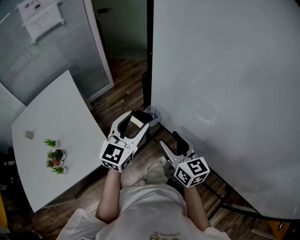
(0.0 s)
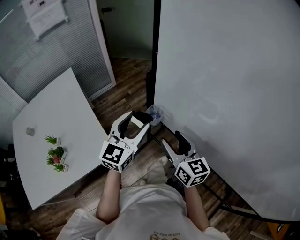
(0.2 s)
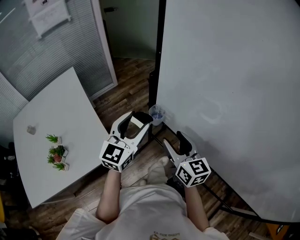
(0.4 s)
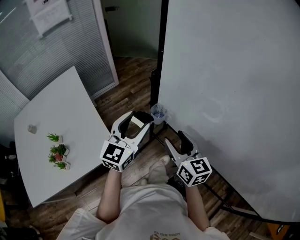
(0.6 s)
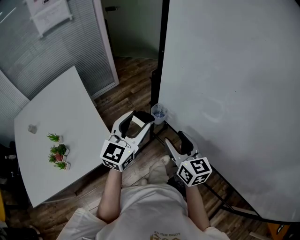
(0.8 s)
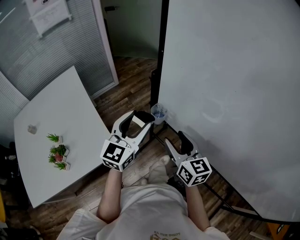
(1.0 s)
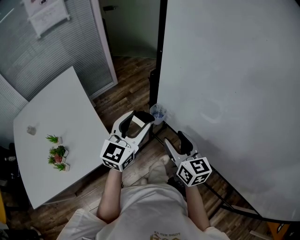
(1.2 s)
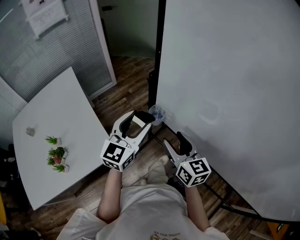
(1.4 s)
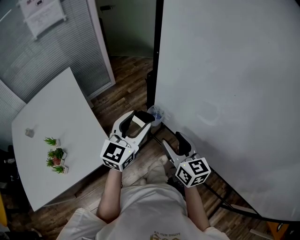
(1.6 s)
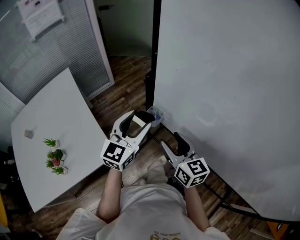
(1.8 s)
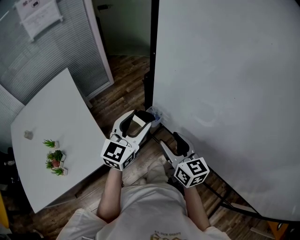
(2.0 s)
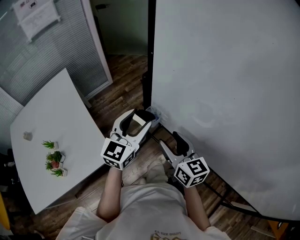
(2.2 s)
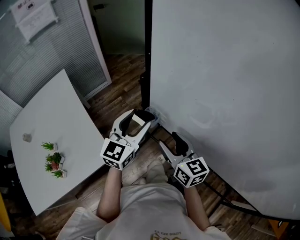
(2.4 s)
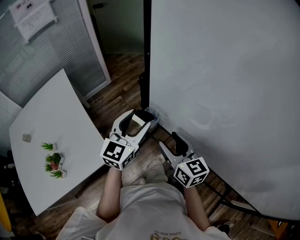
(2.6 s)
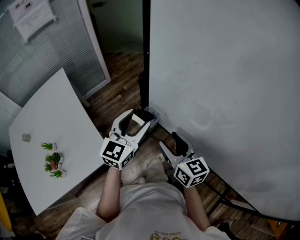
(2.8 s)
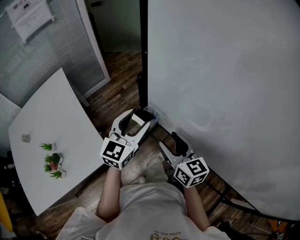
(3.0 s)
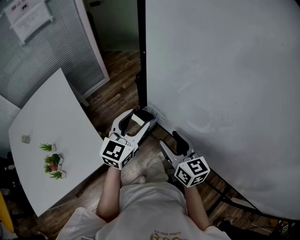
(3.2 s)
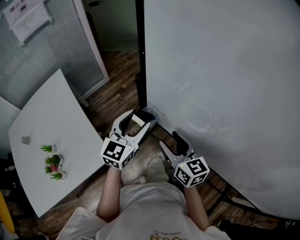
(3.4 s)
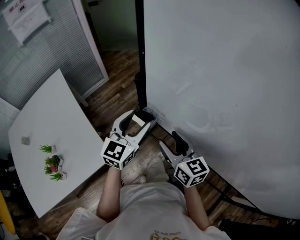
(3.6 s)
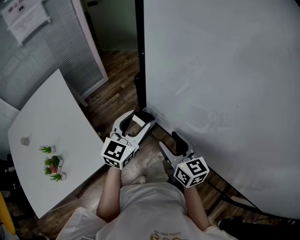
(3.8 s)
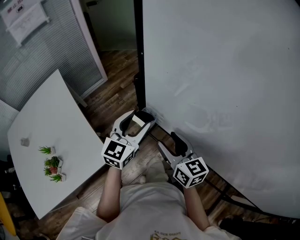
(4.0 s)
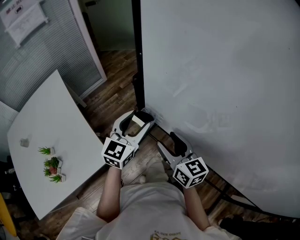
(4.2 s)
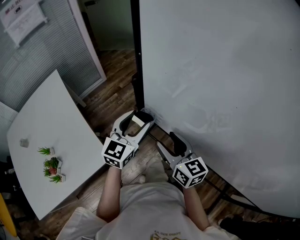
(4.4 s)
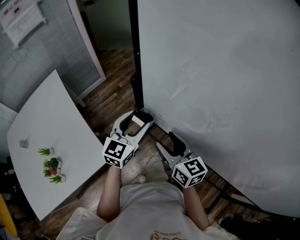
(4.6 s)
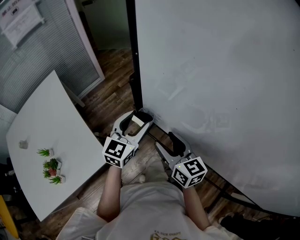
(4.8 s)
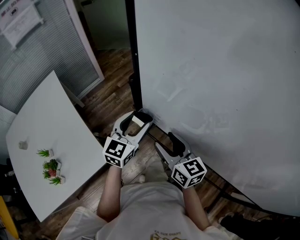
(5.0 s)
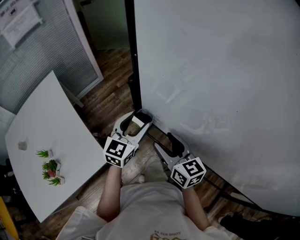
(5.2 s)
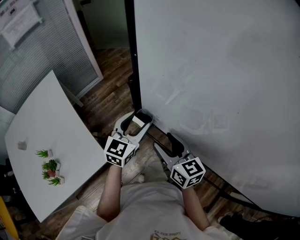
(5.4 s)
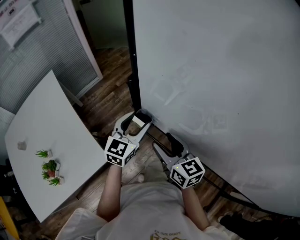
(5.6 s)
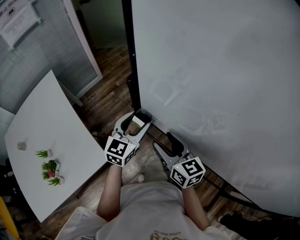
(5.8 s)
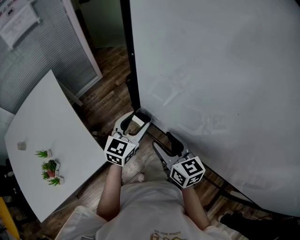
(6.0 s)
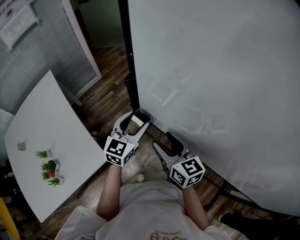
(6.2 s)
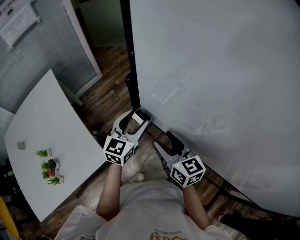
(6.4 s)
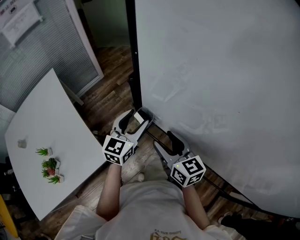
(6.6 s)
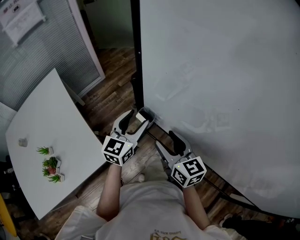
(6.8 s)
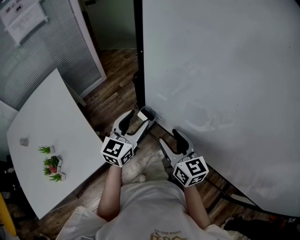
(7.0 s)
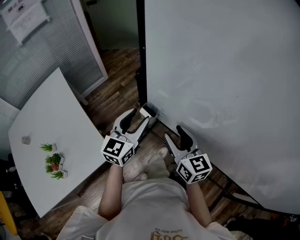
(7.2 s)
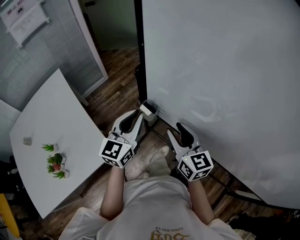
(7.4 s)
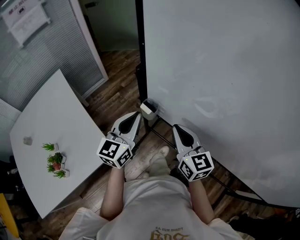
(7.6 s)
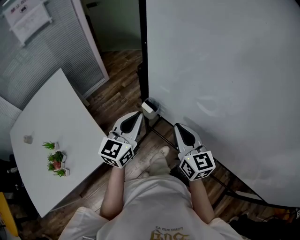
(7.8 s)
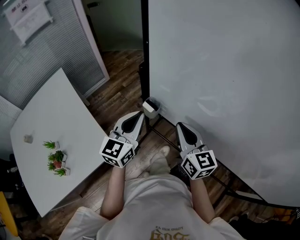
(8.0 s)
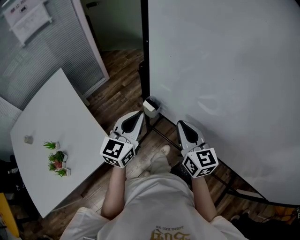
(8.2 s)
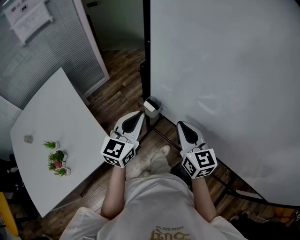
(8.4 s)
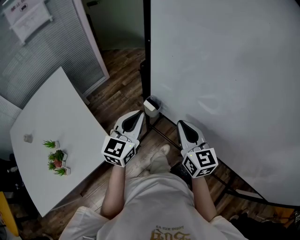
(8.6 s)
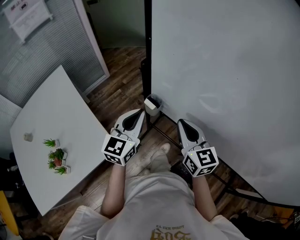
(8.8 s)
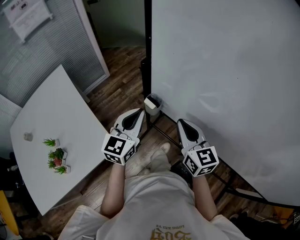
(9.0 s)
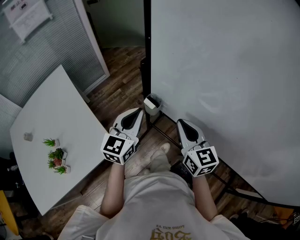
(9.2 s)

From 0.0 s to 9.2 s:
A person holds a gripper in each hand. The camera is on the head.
From 0.0 s to 3.0 s: The grippers move only a little.
From 3.0 s to 4.6 s: There are only small adjustments of the grippers.
From 4.6 s to 6.2 s: The grippers stay close to where they were, moving slightly.
From 6.2 s to 7.6 s: The left gripper shifts approximately 10 cm upward and backward, and closes. Meanwhile the right gripper changes place by some 5 cm, and closes.
From 7.6 s to 9.2 s: The grippers stay close to where they were, moving slightly.

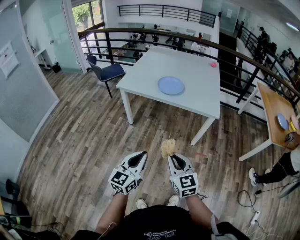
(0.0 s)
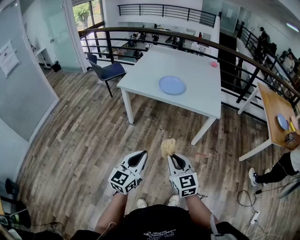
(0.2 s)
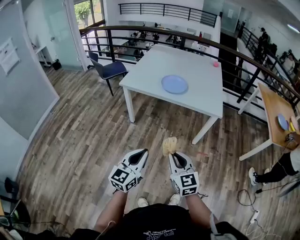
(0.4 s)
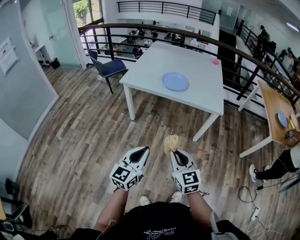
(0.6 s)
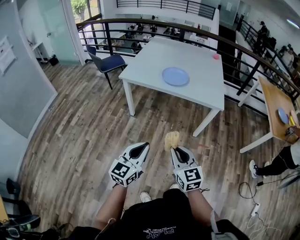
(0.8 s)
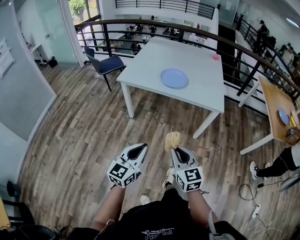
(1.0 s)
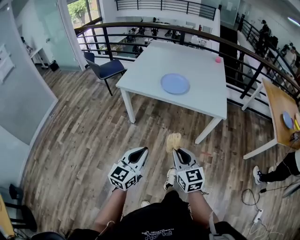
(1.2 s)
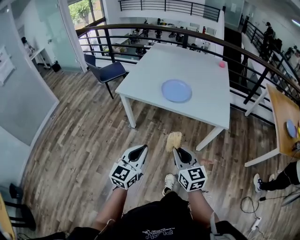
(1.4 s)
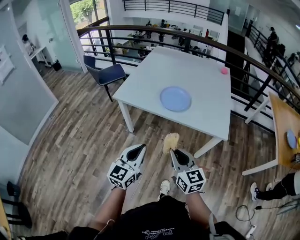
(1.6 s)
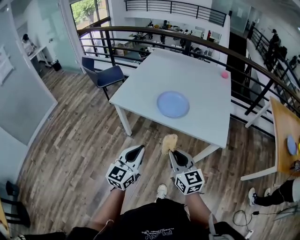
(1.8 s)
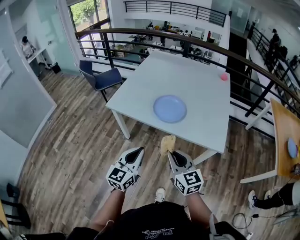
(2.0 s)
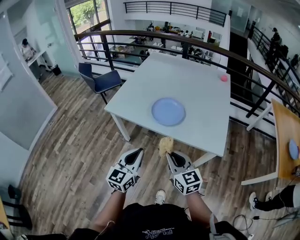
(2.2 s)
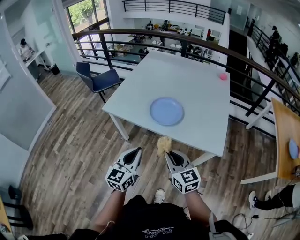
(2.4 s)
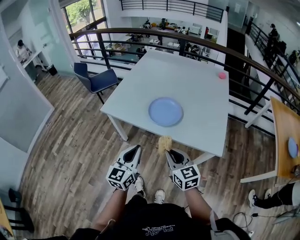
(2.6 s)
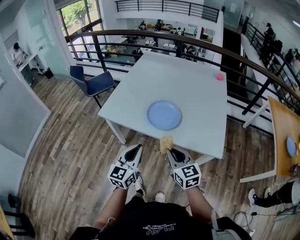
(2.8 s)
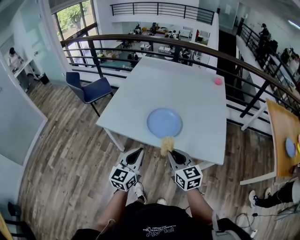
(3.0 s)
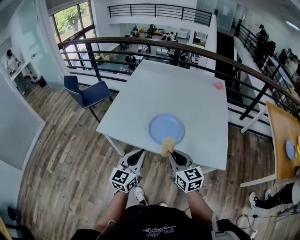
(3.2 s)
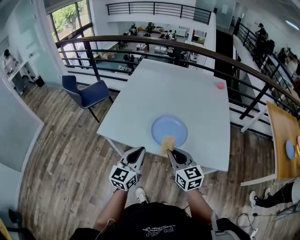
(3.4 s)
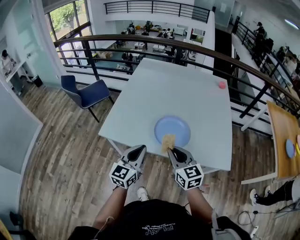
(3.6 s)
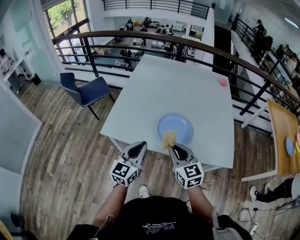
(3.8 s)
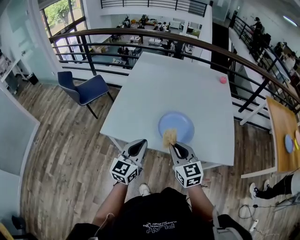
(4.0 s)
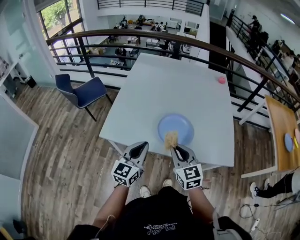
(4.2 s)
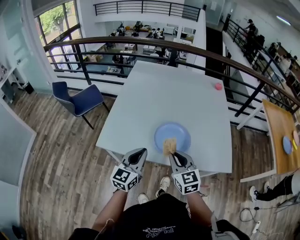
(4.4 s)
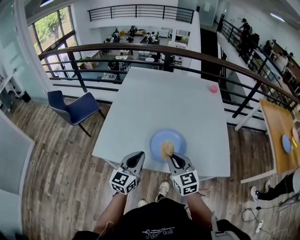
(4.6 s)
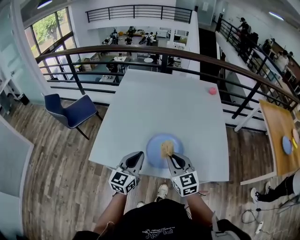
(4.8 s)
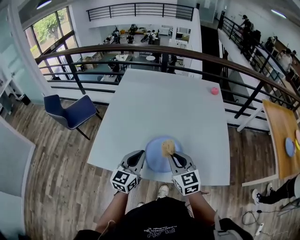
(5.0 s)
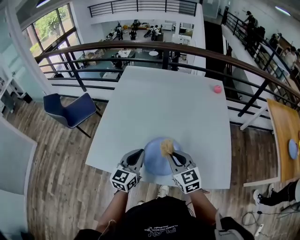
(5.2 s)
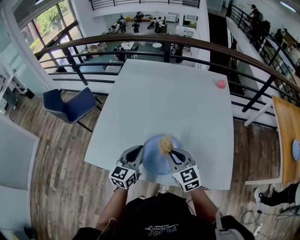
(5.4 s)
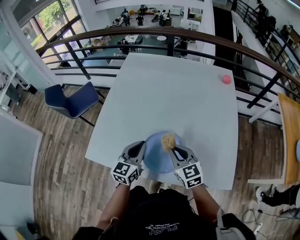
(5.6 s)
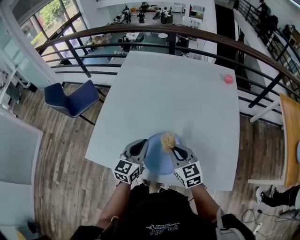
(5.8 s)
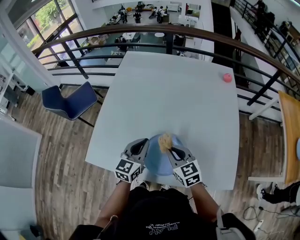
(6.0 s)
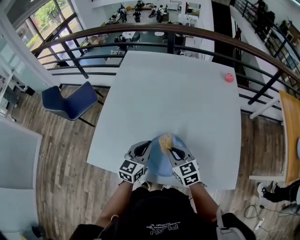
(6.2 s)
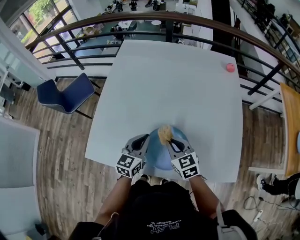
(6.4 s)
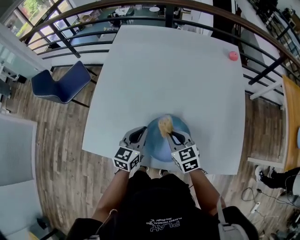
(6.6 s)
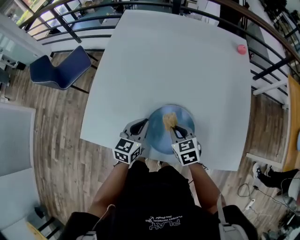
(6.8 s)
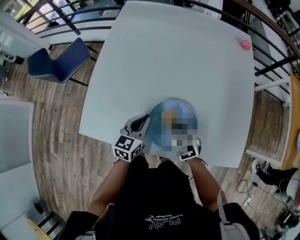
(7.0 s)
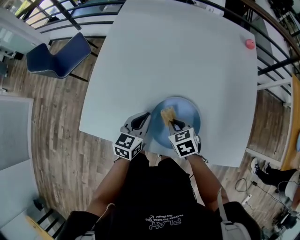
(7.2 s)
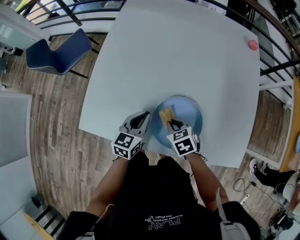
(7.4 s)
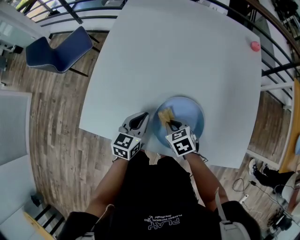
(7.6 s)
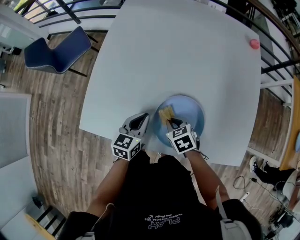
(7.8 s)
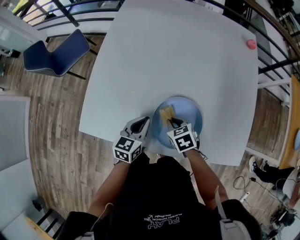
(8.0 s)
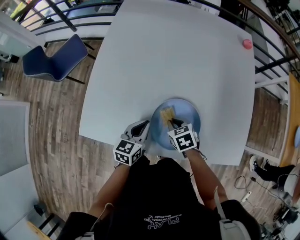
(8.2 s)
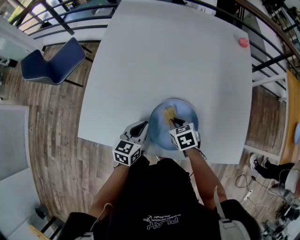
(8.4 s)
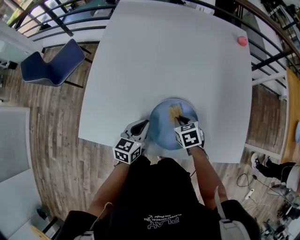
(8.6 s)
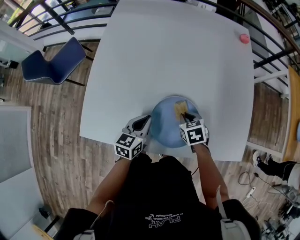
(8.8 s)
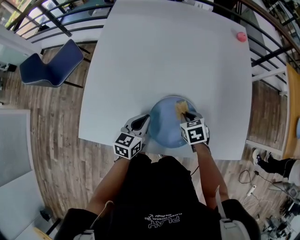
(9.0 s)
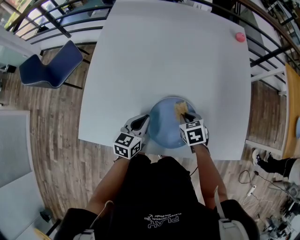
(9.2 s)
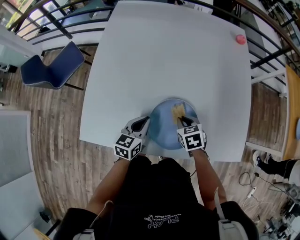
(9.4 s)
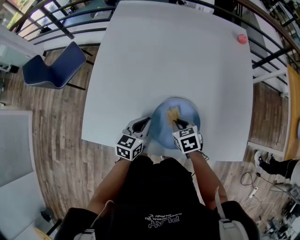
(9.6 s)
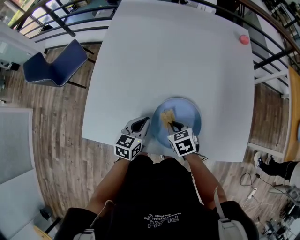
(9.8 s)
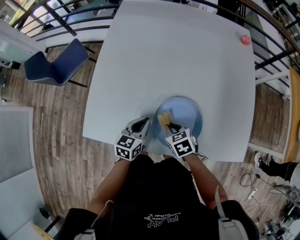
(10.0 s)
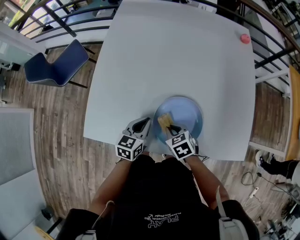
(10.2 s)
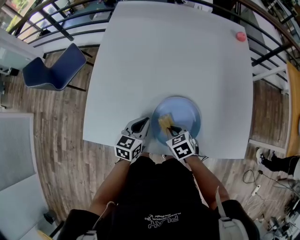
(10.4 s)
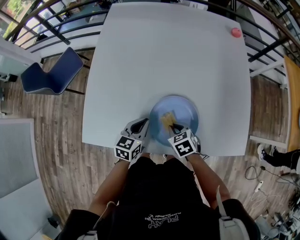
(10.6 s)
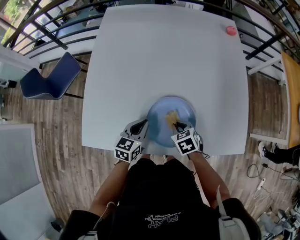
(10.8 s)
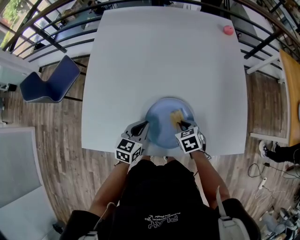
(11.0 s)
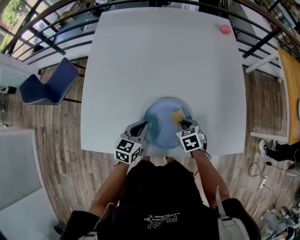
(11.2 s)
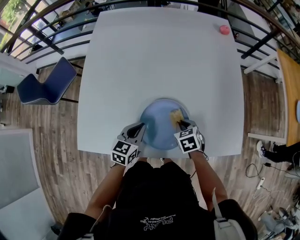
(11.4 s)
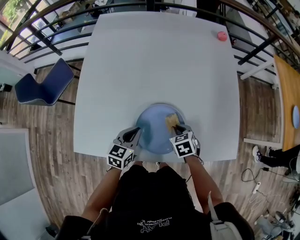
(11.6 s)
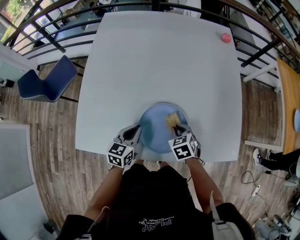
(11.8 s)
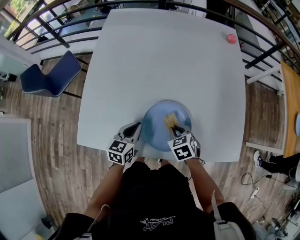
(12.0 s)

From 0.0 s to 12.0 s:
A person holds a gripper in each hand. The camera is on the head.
From 0.0 s to 1.6 s: The grippers both shift forward by some 25 cm.
From 1.6 s to 3.0 s: Both grippers move forward, approximately 20 cm.
From 3.0 s to 4.4 s: Both grippers travel together forward and to the left, some 15 cm.
From 4.4 s to 6.0 s: The left gripper heads forward and to the right, covering roughly 25 cm. The right gripper heads forward, covering roughly 20 cm.
From 6.0 s to 7.6 s: The two grippers go approximately 15 cm downward and to the left. The right gripper angles its fingers downward, by about 30 degrees.
From 7.6 s to 9.0 s: The right gripper goes approximately 10 cm to the right.
From 9.0 s to 10.4 s: The right gripper moves to the left and backward, some 10 cm.
From 10.4 s to 12.0 s: The right gripper shifts roughly 5 cm to the right.

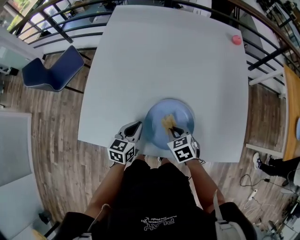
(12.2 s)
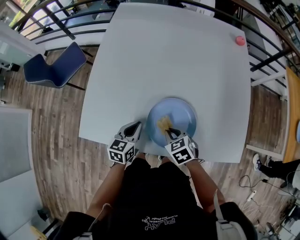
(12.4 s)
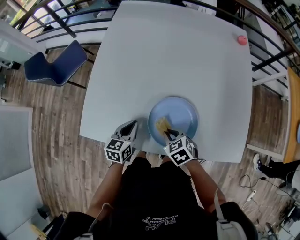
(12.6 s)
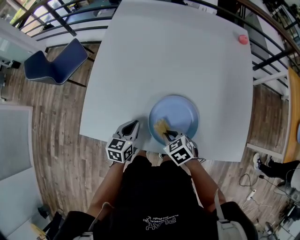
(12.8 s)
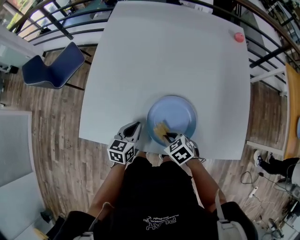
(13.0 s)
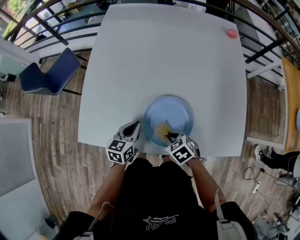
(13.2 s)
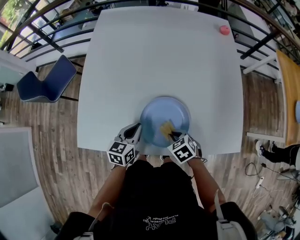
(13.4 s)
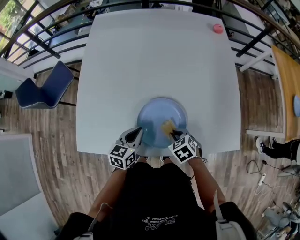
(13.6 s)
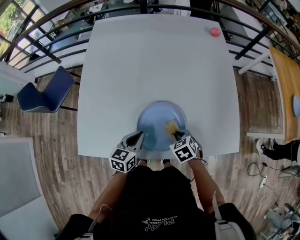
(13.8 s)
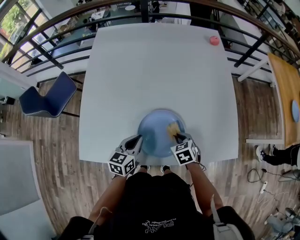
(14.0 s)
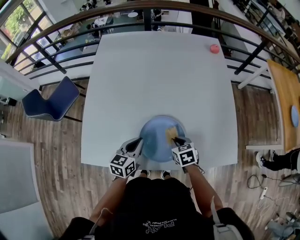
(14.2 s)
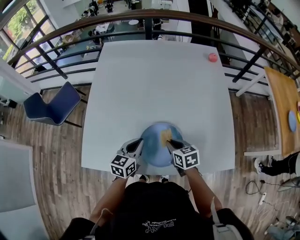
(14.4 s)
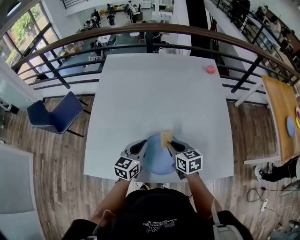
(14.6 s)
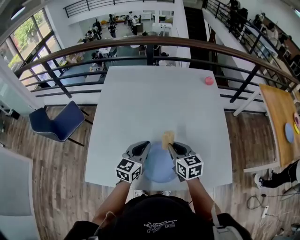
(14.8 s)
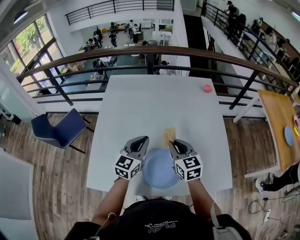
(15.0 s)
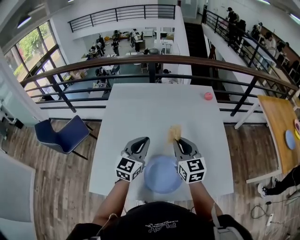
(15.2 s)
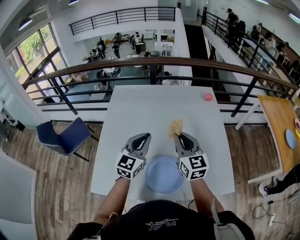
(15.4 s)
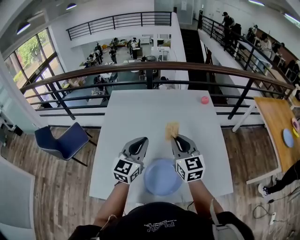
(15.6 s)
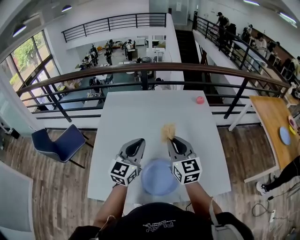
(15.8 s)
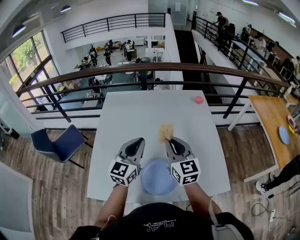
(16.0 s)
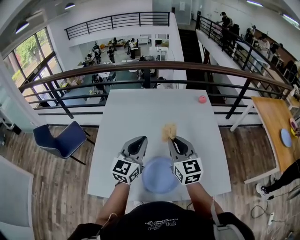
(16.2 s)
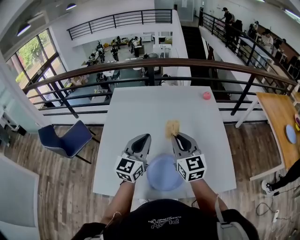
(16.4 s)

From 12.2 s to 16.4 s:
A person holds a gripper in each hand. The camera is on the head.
From 12.2 s to 13.6 s: The right gripper travels to the left and back again, some 5 cm each way.
From 13.6 s to 15.0 s: Both grippers travel together upward and forward, approximately 25 cm. The left gripper turns by roughly 30 degrees. The right gripper tilts its fingers approximately 50 degrees upward.
From 15.0 s to 16.4 s: Both grippers move upward, approximately 10 cm.
